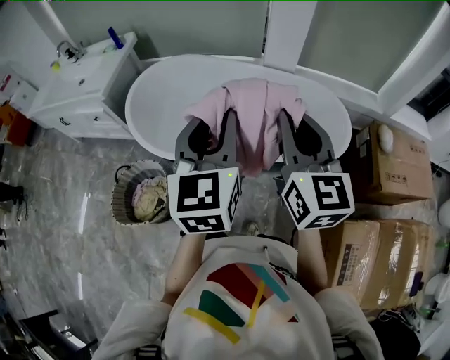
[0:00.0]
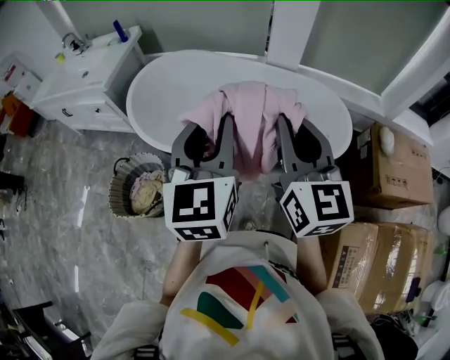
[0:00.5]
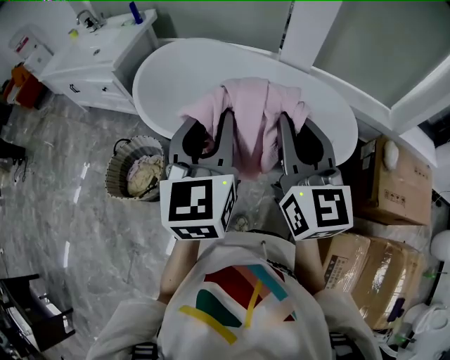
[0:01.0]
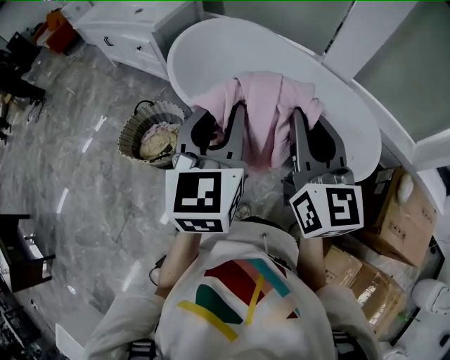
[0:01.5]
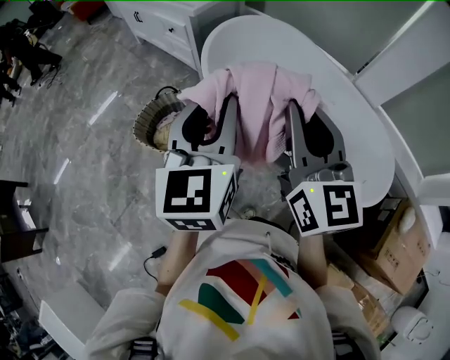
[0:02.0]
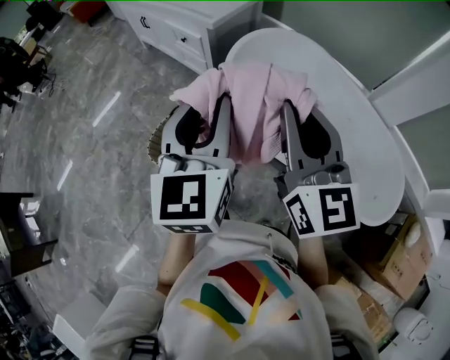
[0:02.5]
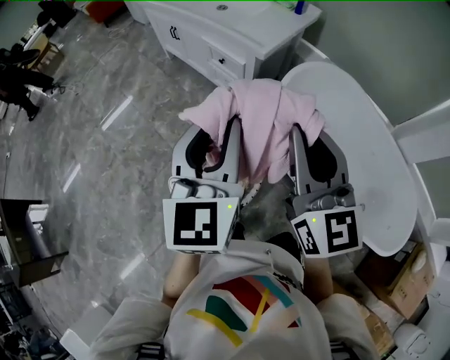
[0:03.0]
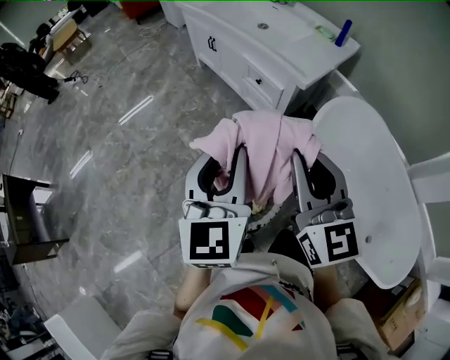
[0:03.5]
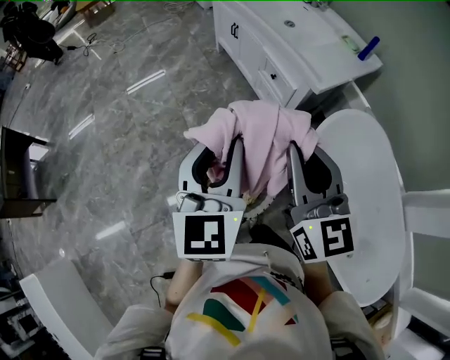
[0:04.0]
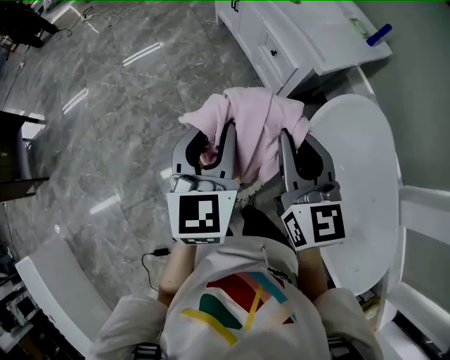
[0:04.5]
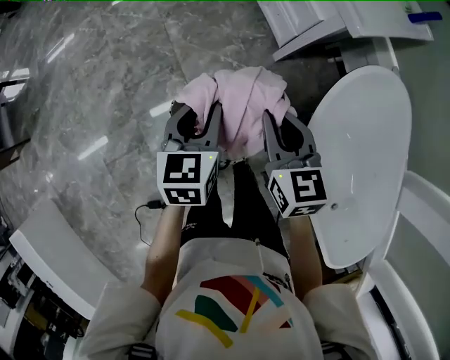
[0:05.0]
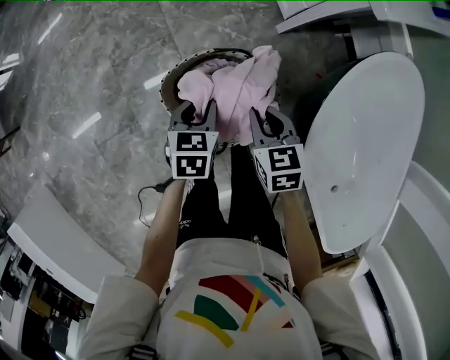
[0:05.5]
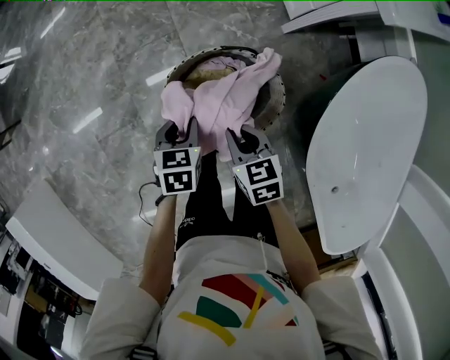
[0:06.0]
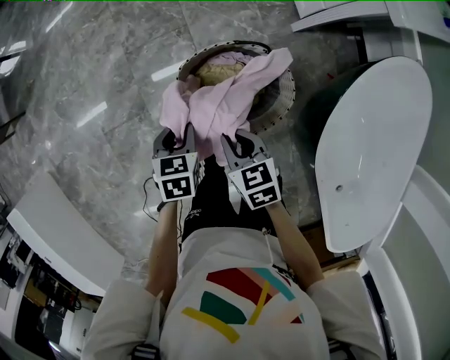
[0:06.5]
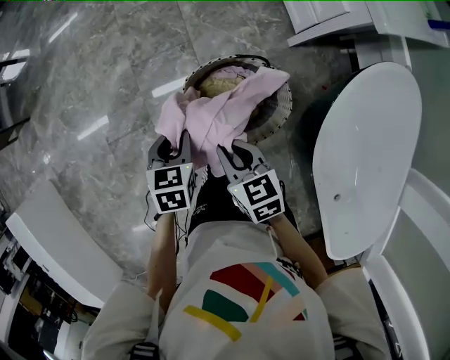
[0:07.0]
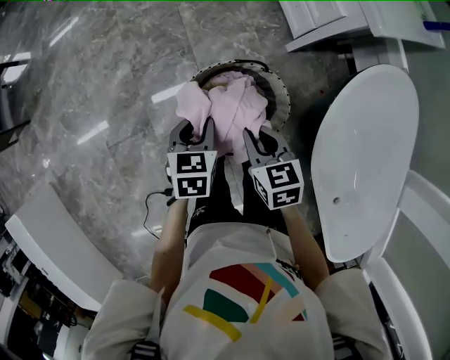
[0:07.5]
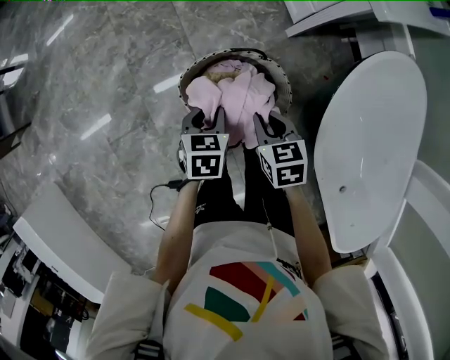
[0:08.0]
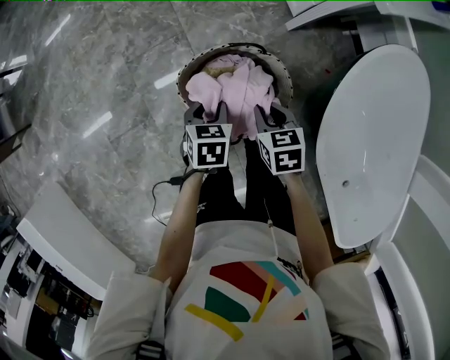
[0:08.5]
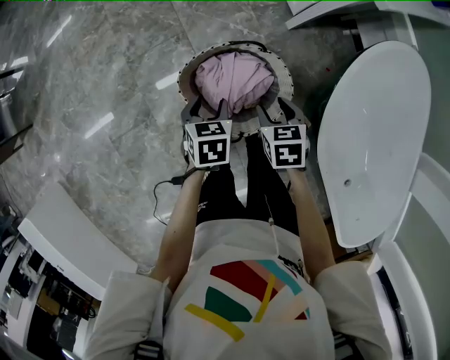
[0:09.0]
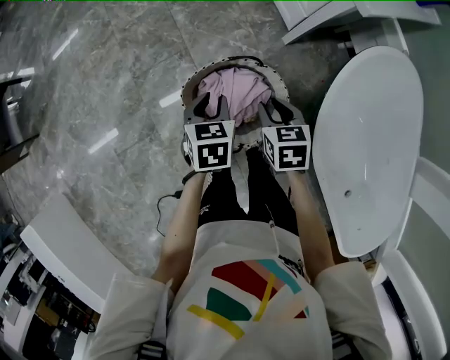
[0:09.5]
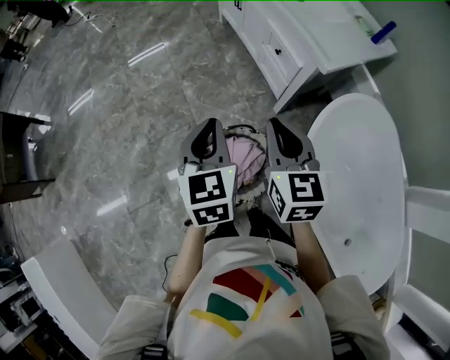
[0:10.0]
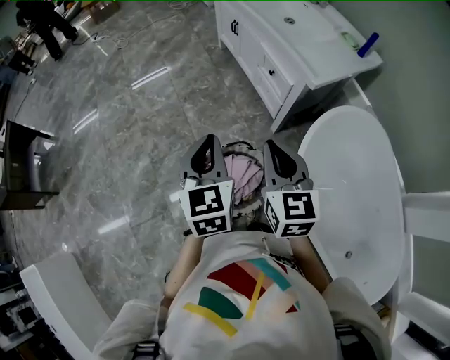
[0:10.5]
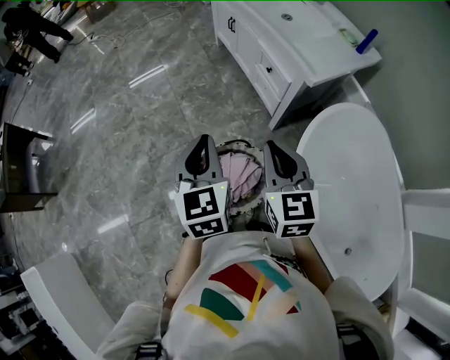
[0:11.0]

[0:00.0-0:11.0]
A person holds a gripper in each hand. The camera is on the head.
0:00.0 to 0:02.0: The left gripper moves about 20 cm, and rotates approximately 30 degrees. The right gripper moves approximately 20 cm, and turns by about 30 degrees.
0:02.0 to 0:03.5: Both grippers are carried to the left and forward, about 50 cm.
0:03.5 to 0:05.5: The grippers both shift downward by about 40 cm. The right gripper tips its fingers downward by approximately 50 degrees, while the left gripper angles its fingers downward, by roughly 50 degrees.
0:05.5 to 0:07.5: Both grippers move to the left and upward, roughly 10 cm.
0:07.5 to 0:09.0: The left gripper heads downward, covering about 10 cm; the right gripper travels downward and to the right by some 15 cm, and opens its fingers.
0:09.0 to 0:11.0: Both grippers travel together upward, some 35 cm. The right gripper angles its fingers upward, by approximately 40 degrees, and closes its fingers, while the left gripper points its fingers roughly 40 degrees further upward, and closes its fingers.

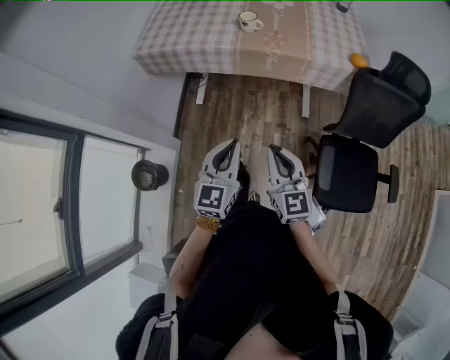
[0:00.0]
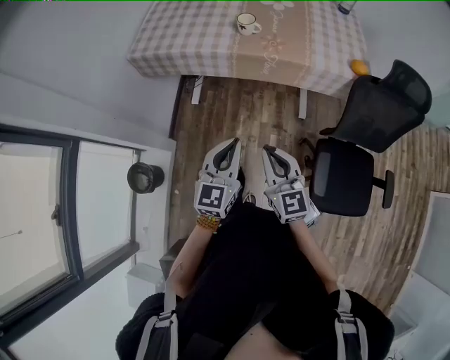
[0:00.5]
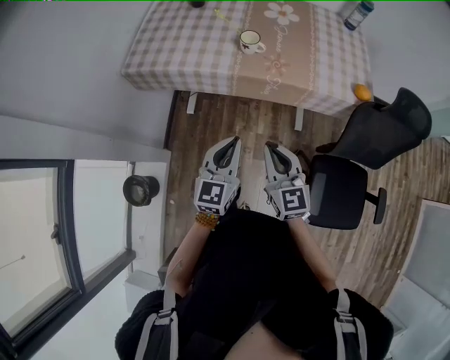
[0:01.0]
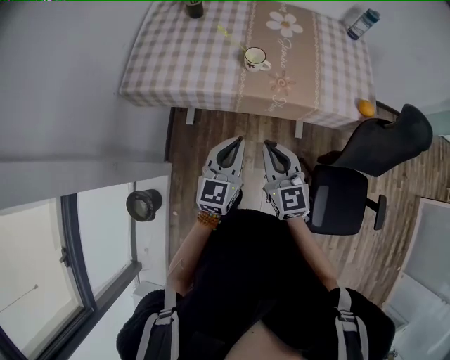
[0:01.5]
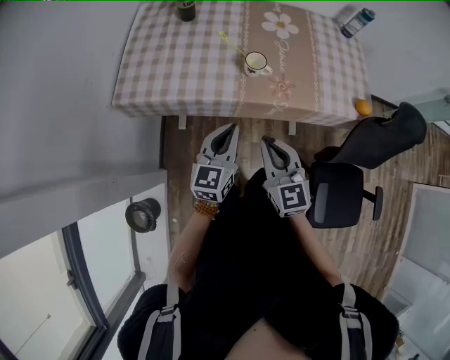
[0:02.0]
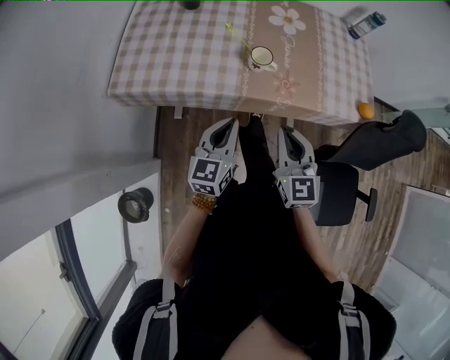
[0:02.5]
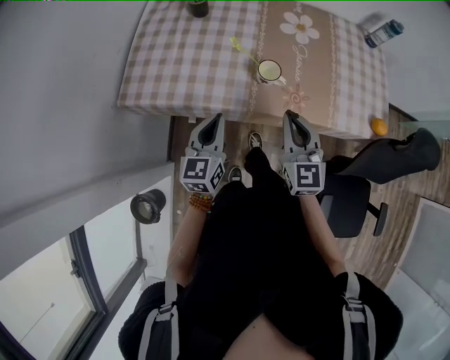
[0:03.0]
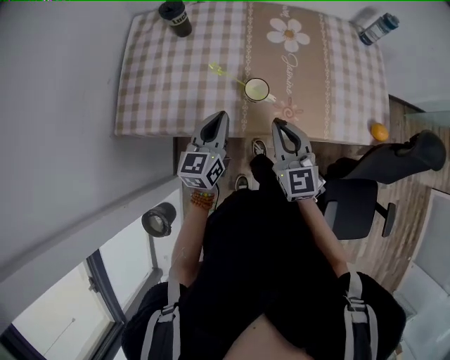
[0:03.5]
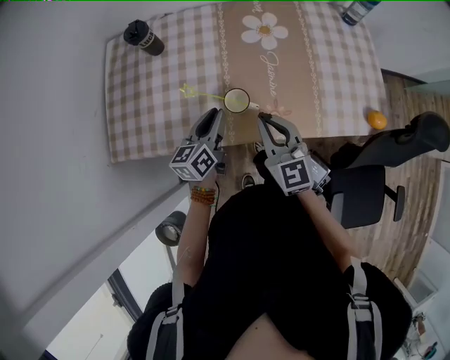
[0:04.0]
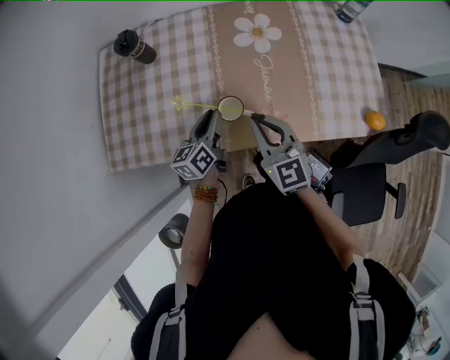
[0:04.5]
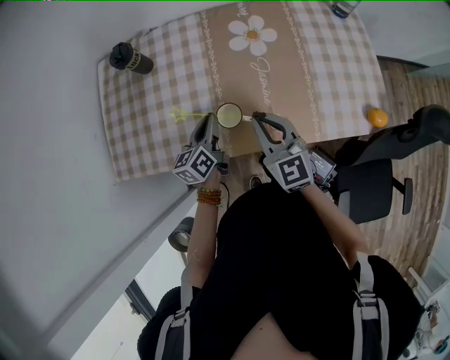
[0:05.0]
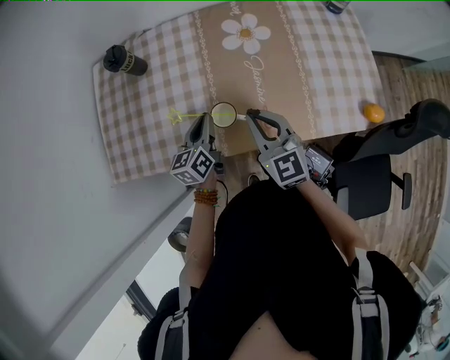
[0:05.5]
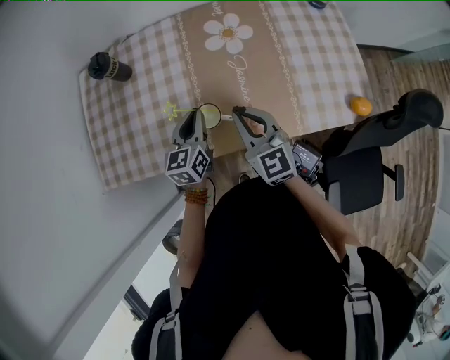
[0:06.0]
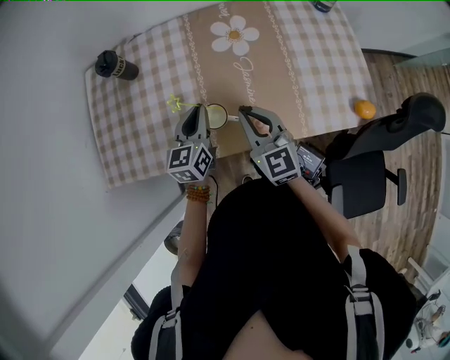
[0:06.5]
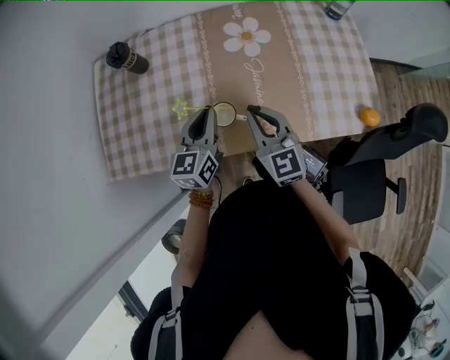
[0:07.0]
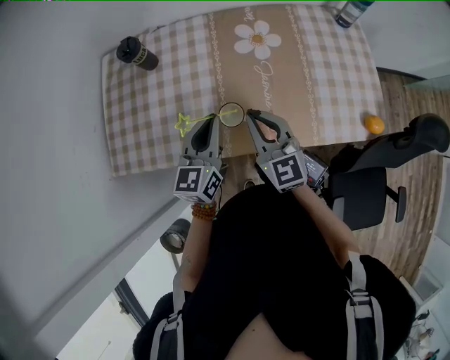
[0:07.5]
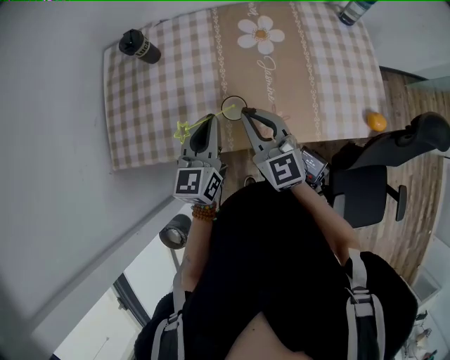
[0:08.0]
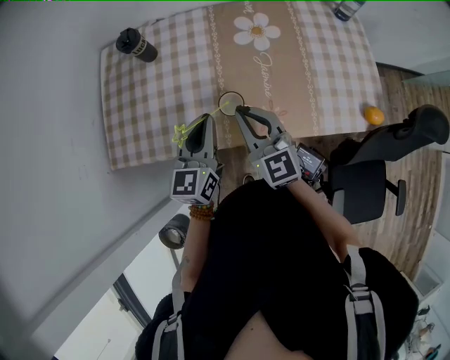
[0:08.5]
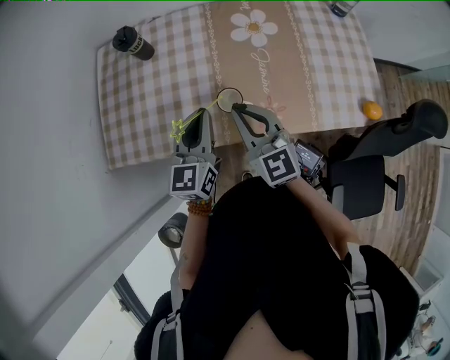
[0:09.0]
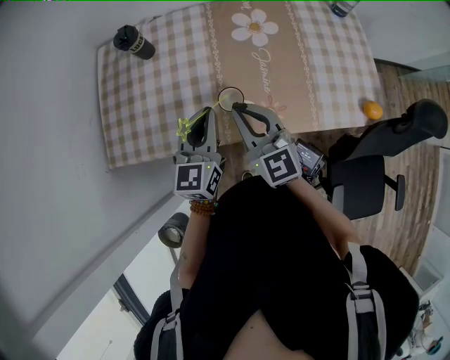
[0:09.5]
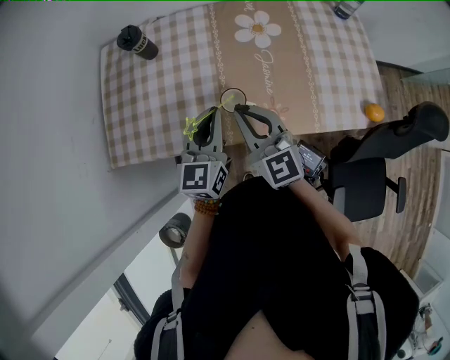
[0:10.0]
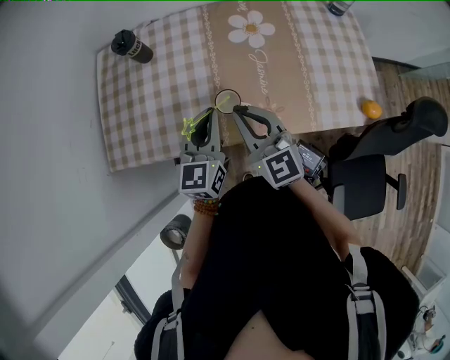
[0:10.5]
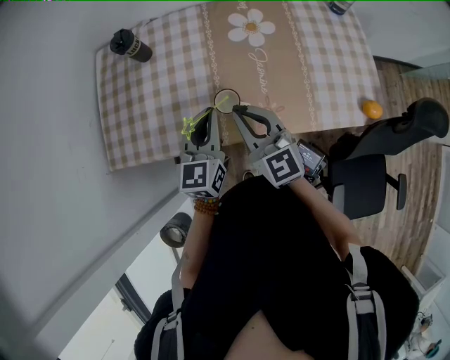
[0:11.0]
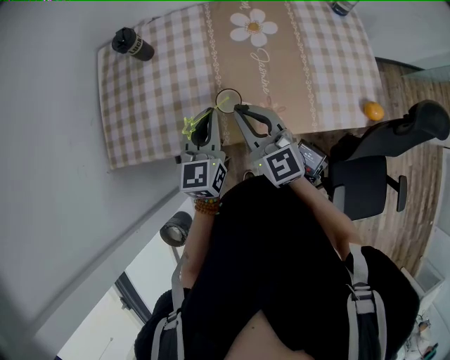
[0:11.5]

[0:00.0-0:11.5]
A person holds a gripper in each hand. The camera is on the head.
0:00.0 to 0:02.0: The grippers both shift forward by about 35 cm.
0:02.0 to 0:04.0: The grippers both shift forward by some 25 cm. The left gripper turns by approximately 20 degrees, and opens up.
0:04.0 to 0:06.0: The grippers both shift forward by roughly 5 cm. The left gripper closes up.
0:06.0 to 0:07.5: The left gripper goes about 10 cm upward.
0:07.5 to 0:09.5: The right gripper shifts by approximately 5 cm.
0:09.5 to 0:11.5: The grippers stay close to where they were, moving slightly.

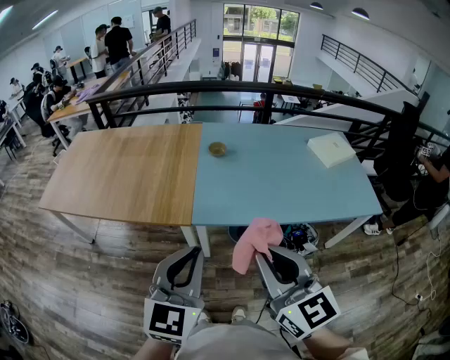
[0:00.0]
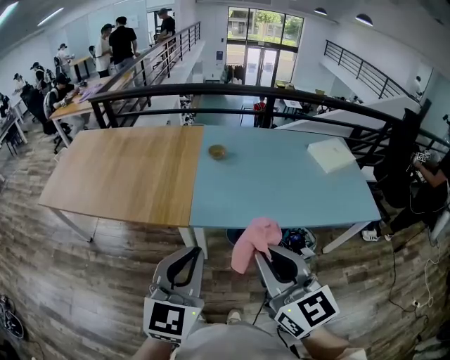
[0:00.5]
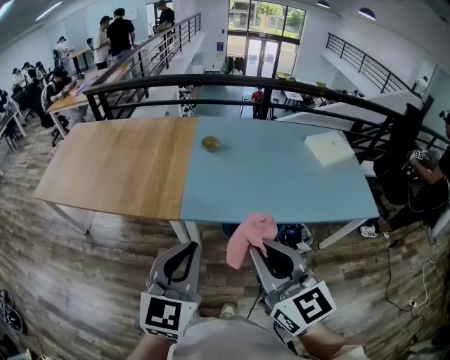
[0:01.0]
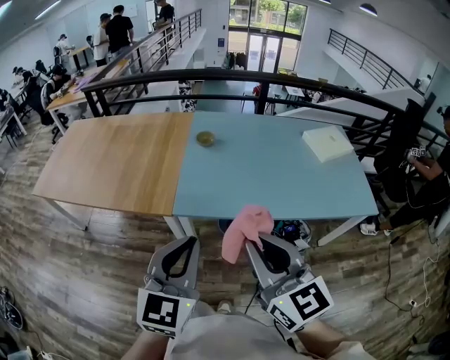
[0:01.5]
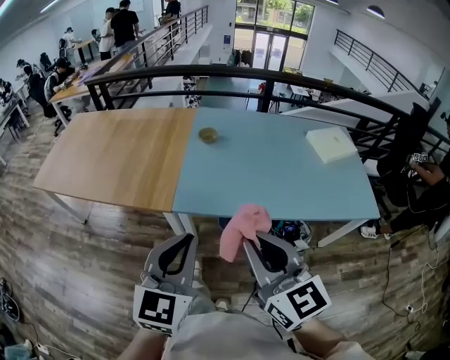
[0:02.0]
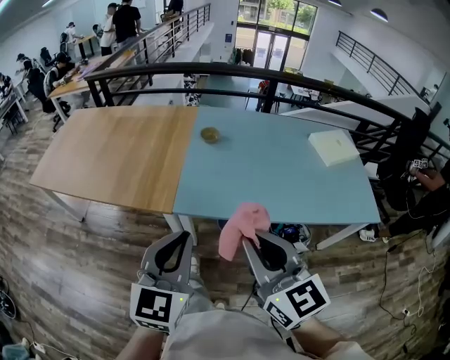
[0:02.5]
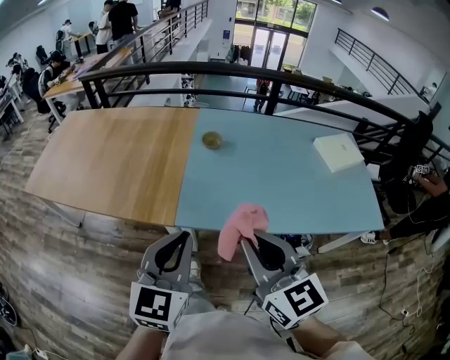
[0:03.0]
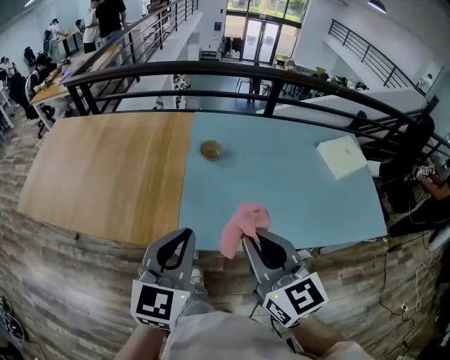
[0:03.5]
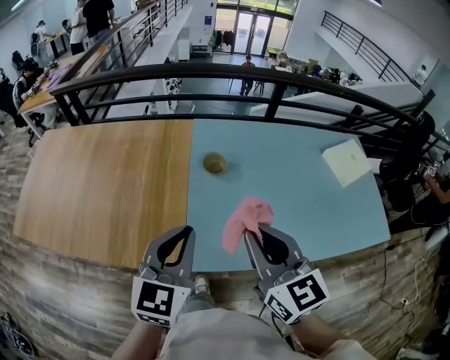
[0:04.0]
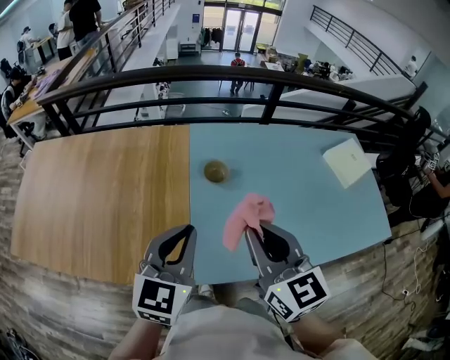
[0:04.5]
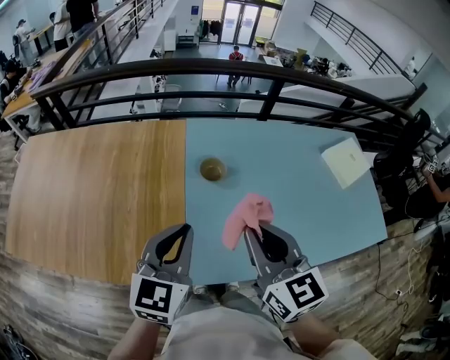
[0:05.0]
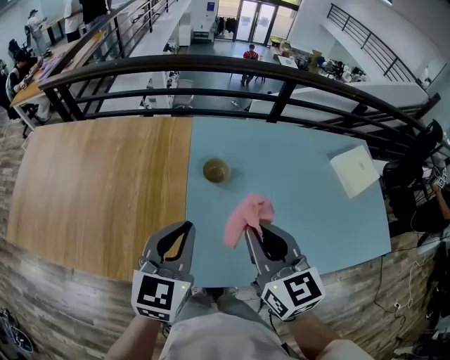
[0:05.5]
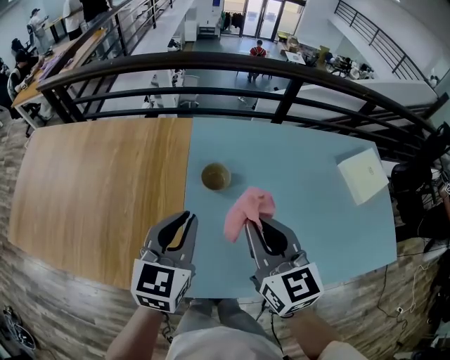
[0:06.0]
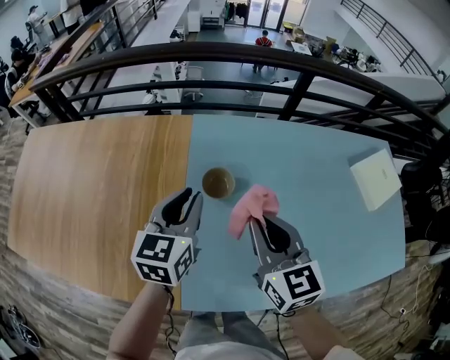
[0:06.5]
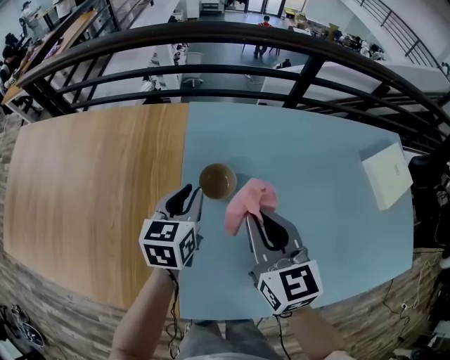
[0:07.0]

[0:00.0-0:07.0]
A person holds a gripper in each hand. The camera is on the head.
0:00.0 to 0:02.0: Both grippers move to the right, approximately 10 cm.
0:02.0 to 0:03.5: Both grippers move forward, about 30 cm.
0:03.5 to 0:05.0: The grippers both shift forward by approximately 25 cm.
0:05.0 to 0:07.0: Both grippers travel together forward and downward, about 35 cm. The left gripper changes its angle by roughly 20 degrees.
